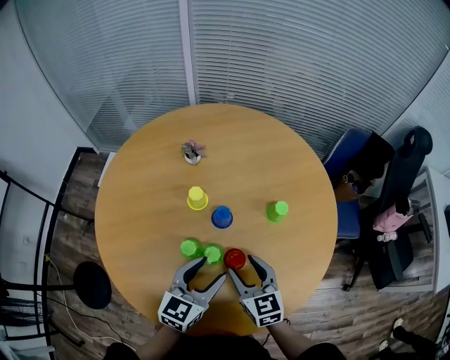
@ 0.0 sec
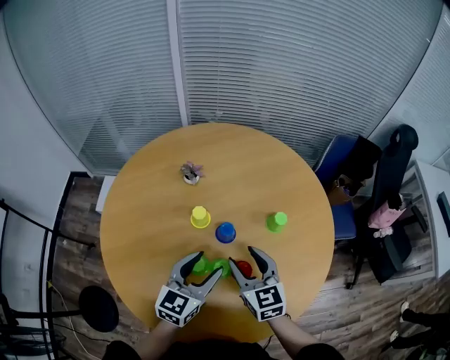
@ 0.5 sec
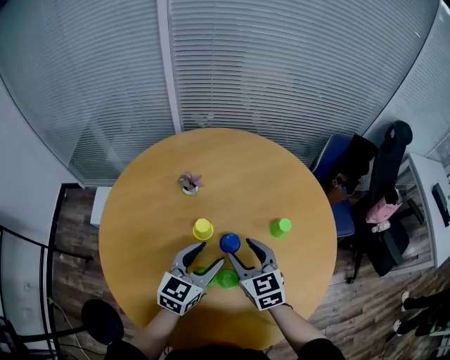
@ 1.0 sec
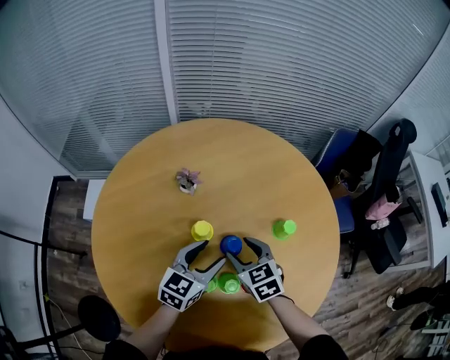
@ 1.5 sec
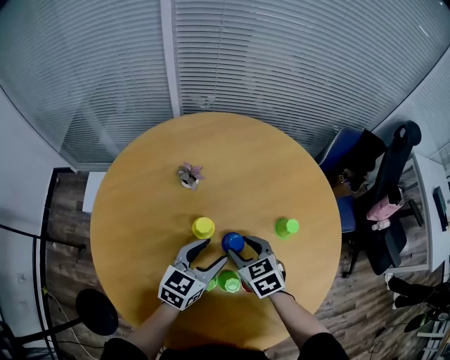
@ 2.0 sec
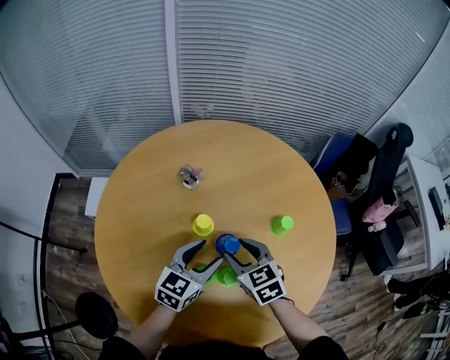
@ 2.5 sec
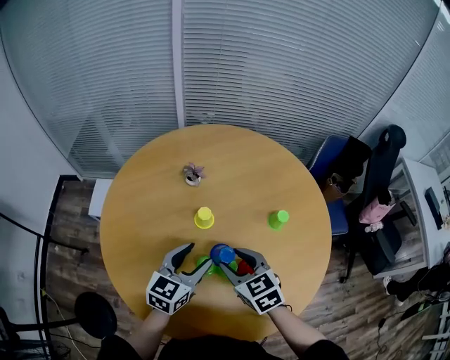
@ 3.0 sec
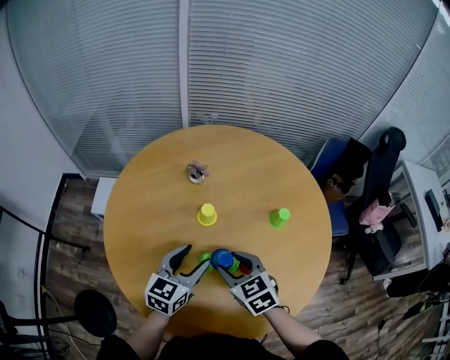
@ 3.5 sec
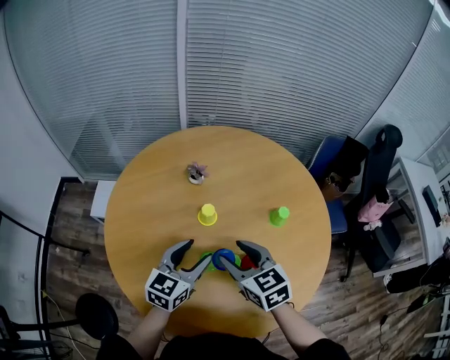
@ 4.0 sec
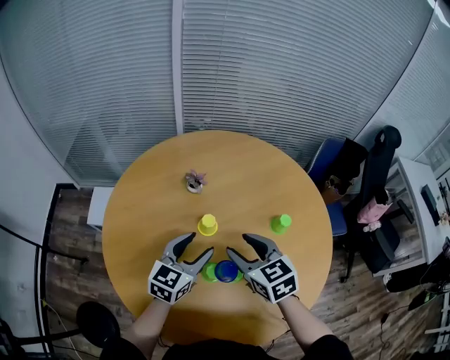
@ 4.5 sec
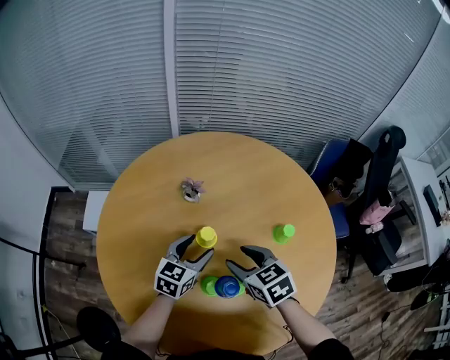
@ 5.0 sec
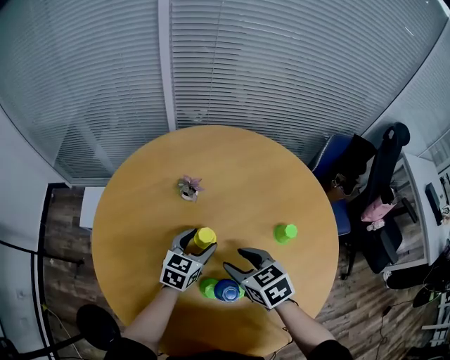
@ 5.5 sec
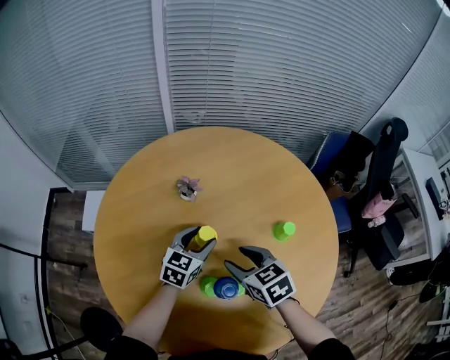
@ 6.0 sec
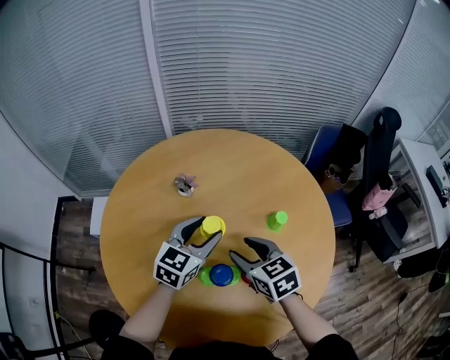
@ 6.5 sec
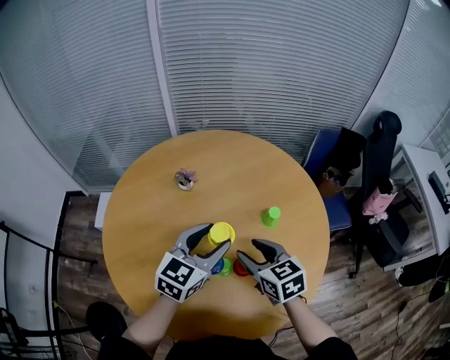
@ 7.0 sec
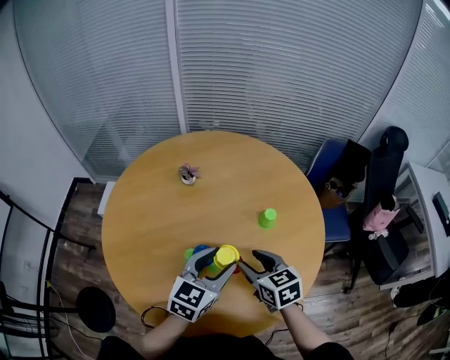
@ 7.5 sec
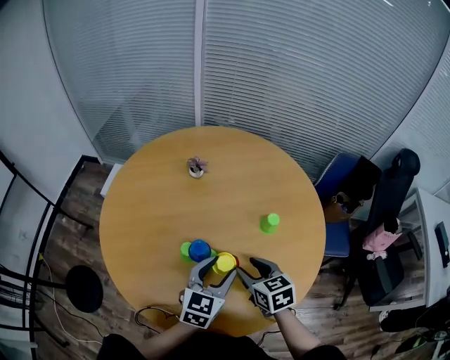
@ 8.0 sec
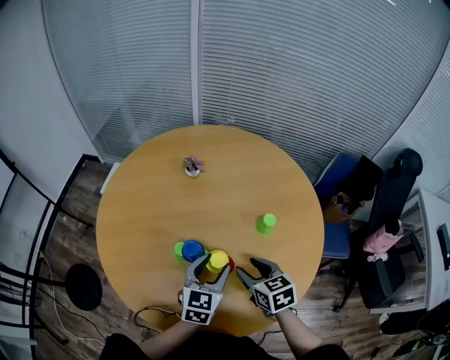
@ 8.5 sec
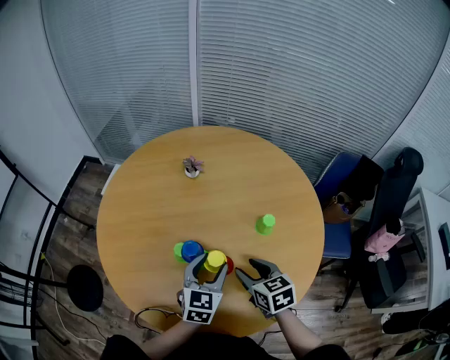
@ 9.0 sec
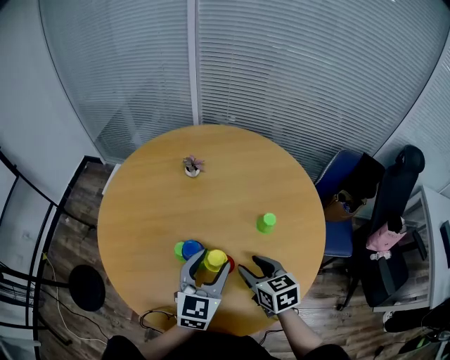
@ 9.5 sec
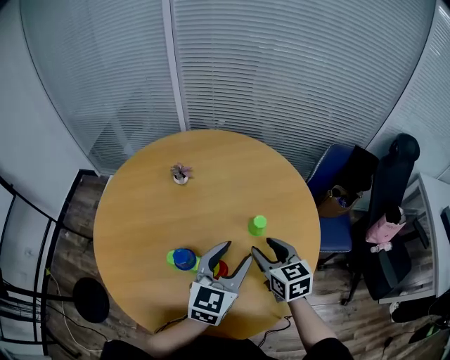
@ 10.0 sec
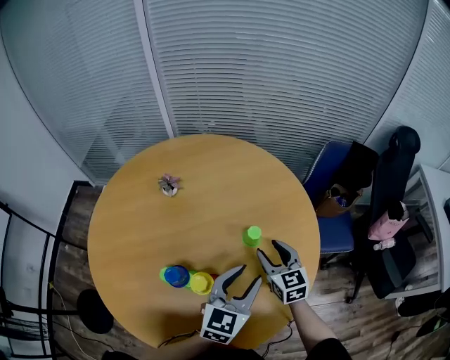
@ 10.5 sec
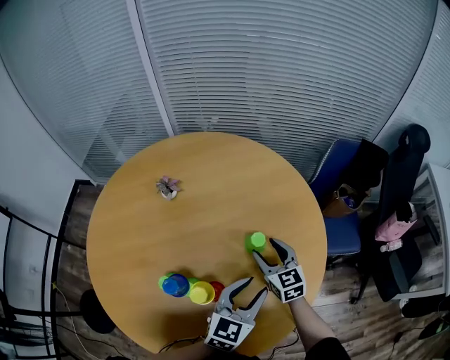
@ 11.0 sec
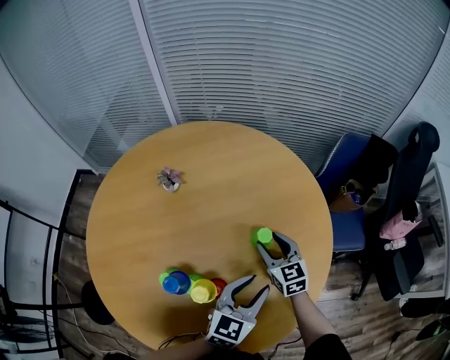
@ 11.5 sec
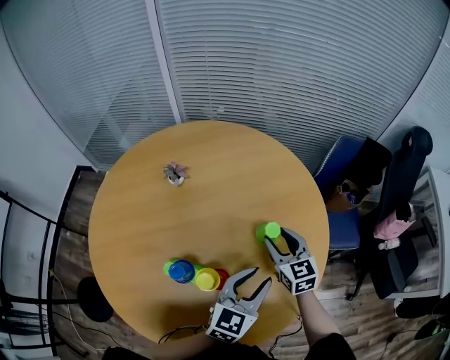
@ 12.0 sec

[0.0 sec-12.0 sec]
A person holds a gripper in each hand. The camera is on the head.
0.0 sec to 2.0 sec: The grippers both shift forward and to the left by approximately 15 cm. The right gripper turns by roughly 20 degrees.
2.0 sec to 4.0 sec: The left gripper goes approximately 10 cm backward, upward and to the left. Meanwhile the right gripper heads upward and backward, covering about 15 cm.
4.0 sec to 6.0 sec: The left gripper heads forward and downward, covering some 20 cm, while the right gripper travels forward and downward by roughly 10 cm.
6.0 sec to 8.0 sec: The right gripper is displaced to the right and backward by about 15 cm; the left gripper heads backward, to the right and upward, covering about 25 cm.
8.0 sec to 10.0 sec: The right gripper shifts roughly 10 cm to the right and forward; the left gripper heads to the right and upward, covering about 10 cm.
10.0 sec to 12.0 sec: The right gripper heads forward and downward, covering about 10 cm. Meanwhile the left gripper moves downward and to the right, approximately 10 cm.

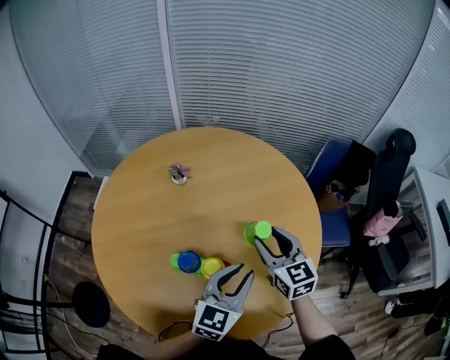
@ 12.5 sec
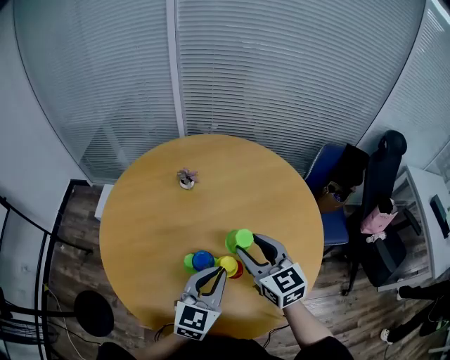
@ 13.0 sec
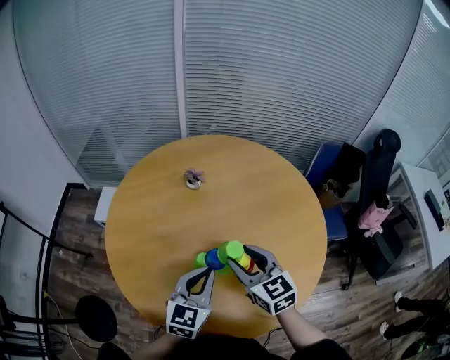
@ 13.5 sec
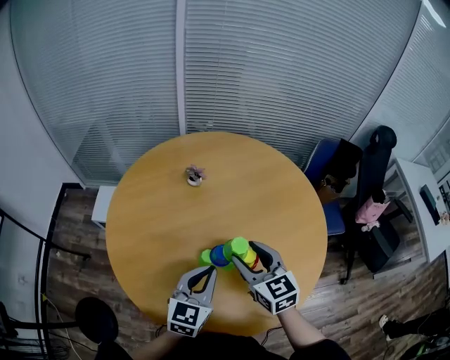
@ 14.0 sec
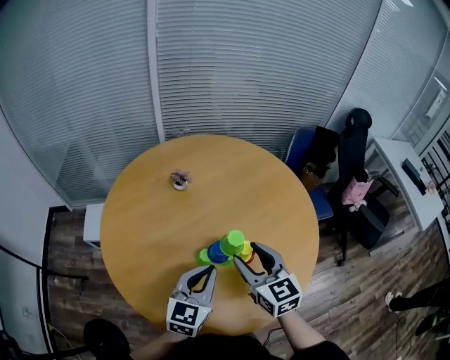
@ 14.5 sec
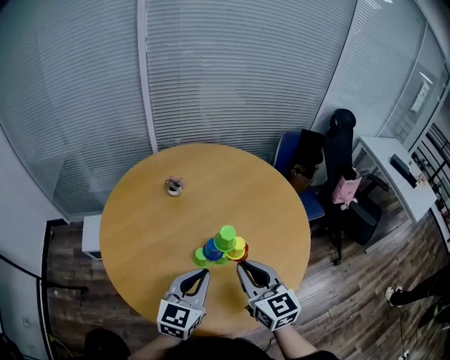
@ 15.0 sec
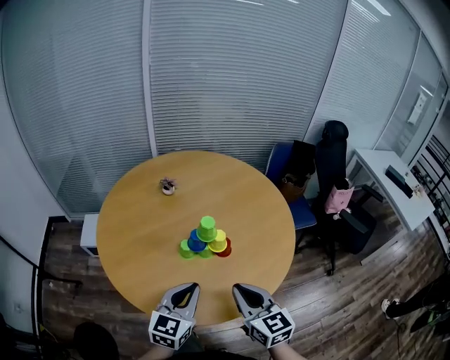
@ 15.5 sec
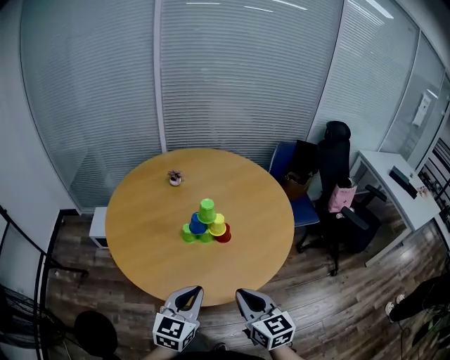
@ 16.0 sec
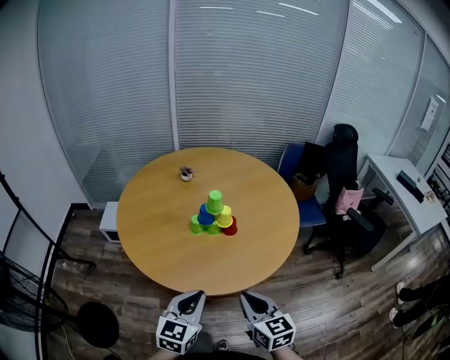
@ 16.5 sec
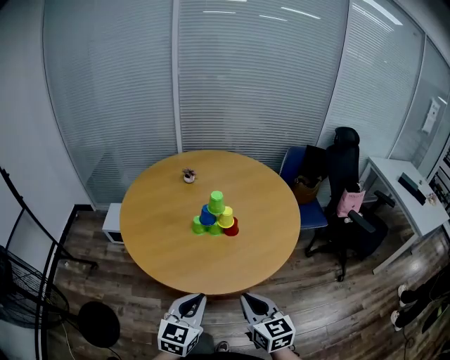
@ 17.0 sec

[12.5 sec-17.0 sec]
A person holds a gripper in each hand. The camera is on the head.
12.5 sec to 14.5 sec: The right gripper is displaced to the left and backward by some 20 cm; the left gripper travels to the left by about 20 cm.
14.5 sec to 17.0 sec: The grippers both shift backward by about 30 cm. The right gripper closes its fingers.

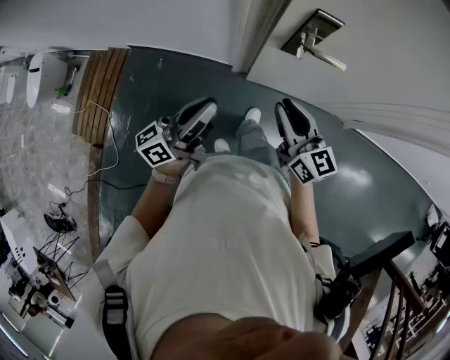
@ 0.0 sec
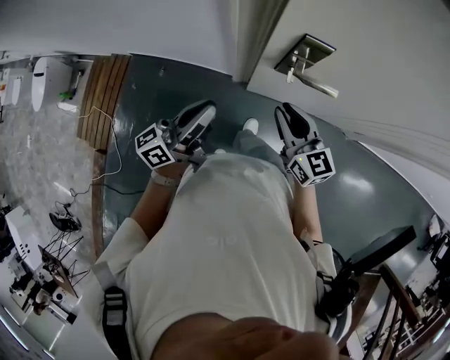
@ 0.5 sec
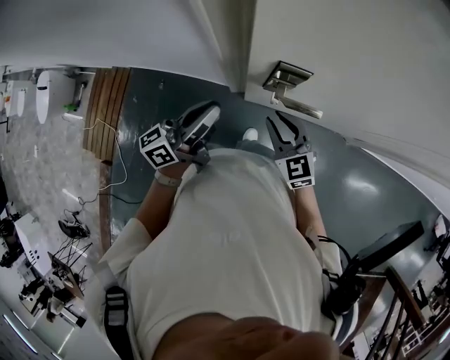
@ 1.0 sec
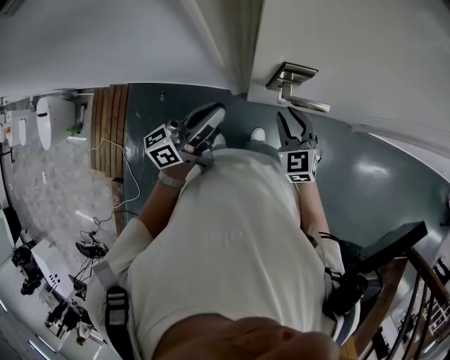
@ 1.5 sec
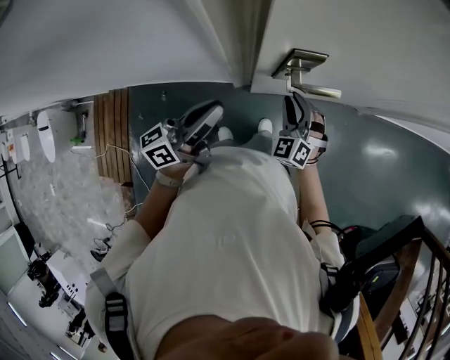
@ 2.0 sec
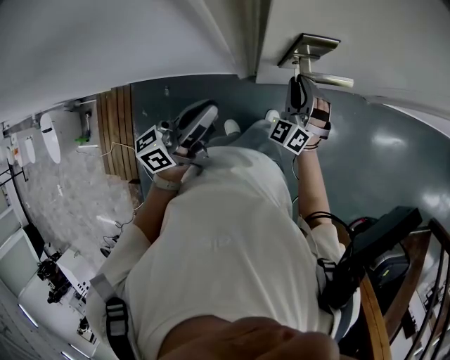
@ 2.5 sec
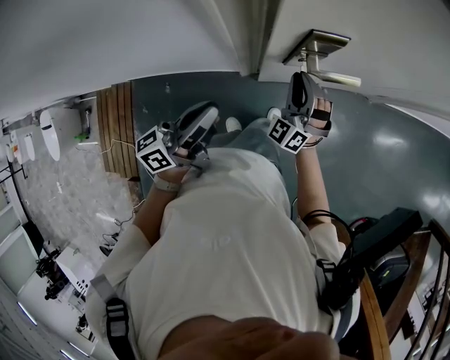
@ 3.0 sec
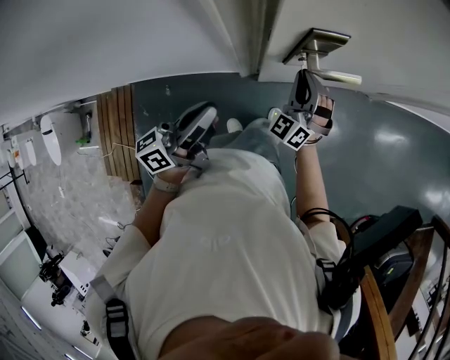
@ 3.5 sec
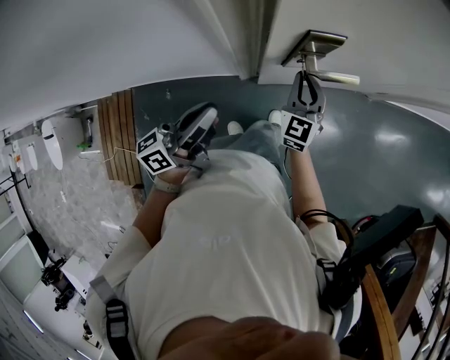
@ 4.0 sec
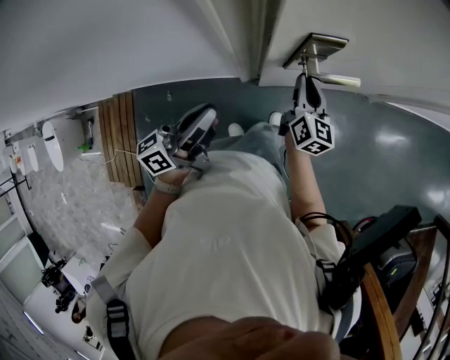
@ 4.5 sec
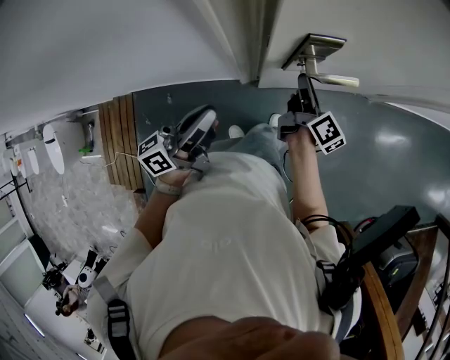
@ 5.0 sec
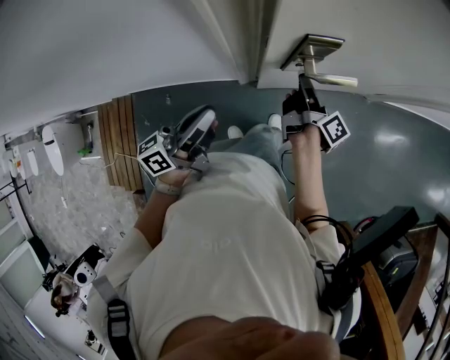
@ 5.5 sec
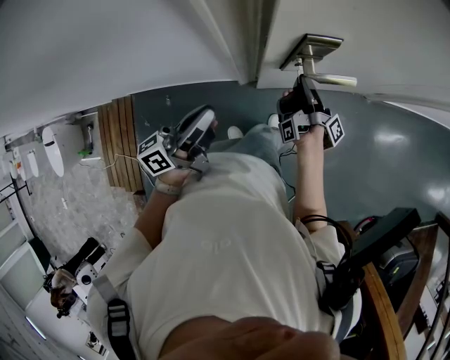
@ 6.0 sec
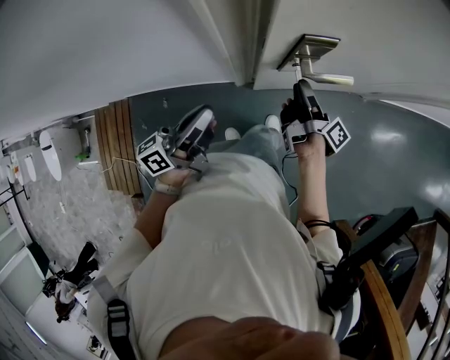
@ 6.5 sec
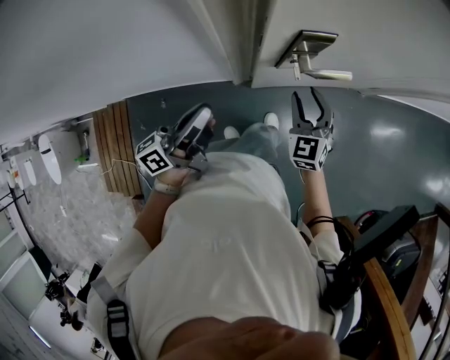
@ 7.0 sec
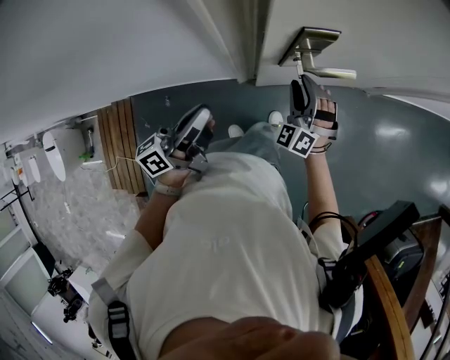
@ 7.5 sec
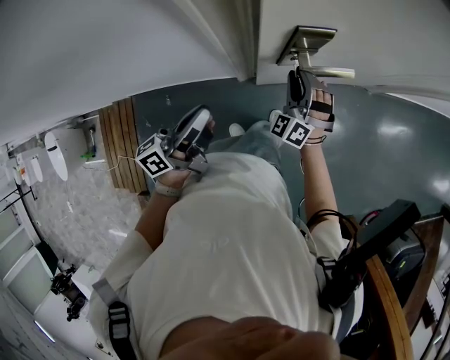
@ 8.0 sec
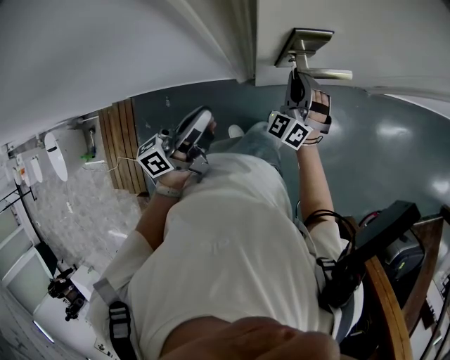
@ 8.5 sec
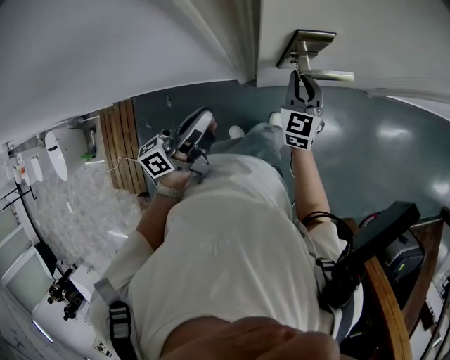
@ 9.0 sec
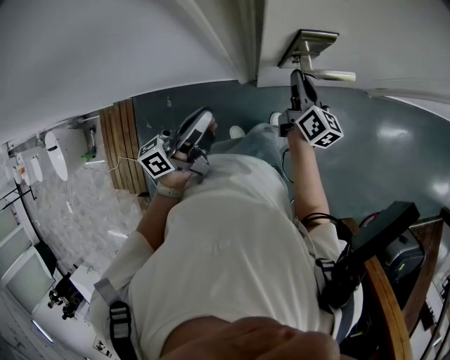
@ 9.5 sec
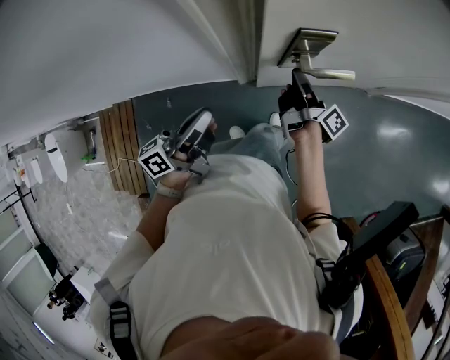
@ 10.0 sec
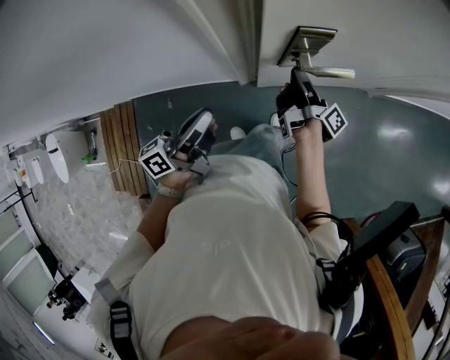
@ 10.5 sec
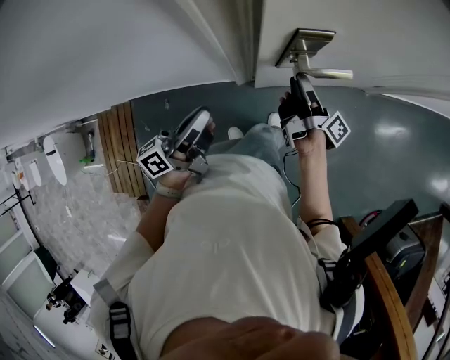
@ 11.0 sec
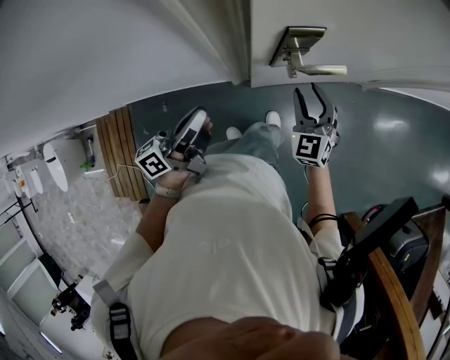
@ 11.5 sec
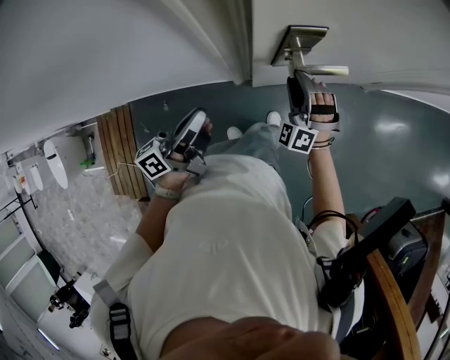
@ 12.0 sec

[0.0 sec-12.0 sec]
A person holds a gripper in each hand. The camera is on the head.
0.0 sec to 2.0 sec: The right gripper ends up roughly 20 cm from where it was, and rotates roughly 70 degrees. The left gripper shifts by approximately 20 cm.
2.0 sec to 4.0 sec: The right gripper rotates some 40 degrees; the left gripper ends up about 5 cm from where it was.
4.0 sec to 6.0 sec: The right gripper twists some 130 degrees clockwise, seen from behind.
6.0 sec to 8.0 sec: The right gripper turns by about 180 degrees, and opens.
8.0 sec to 10.0 sec: The right gripper twists some 150 degrees clockwise, seen from behind, and closes up.
10.0 sec to 12.0 sec: The right gripper twists approximately 160 degrees counterclockwise, seen from behind, and opens its fingers.
